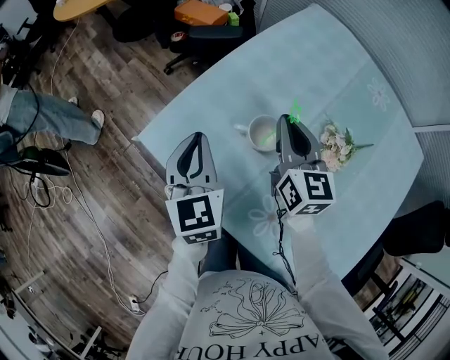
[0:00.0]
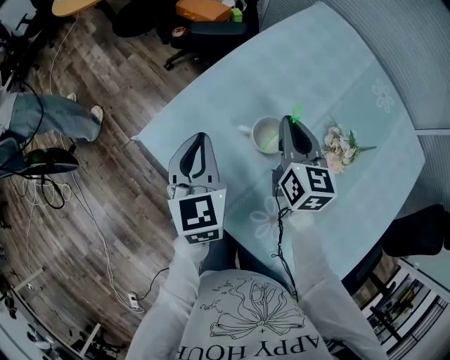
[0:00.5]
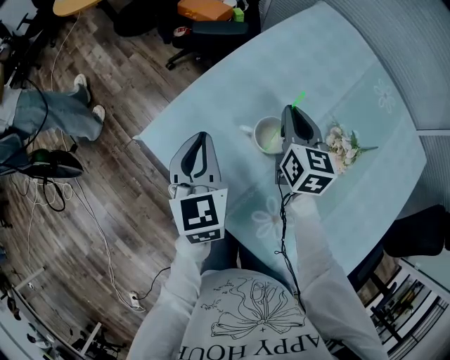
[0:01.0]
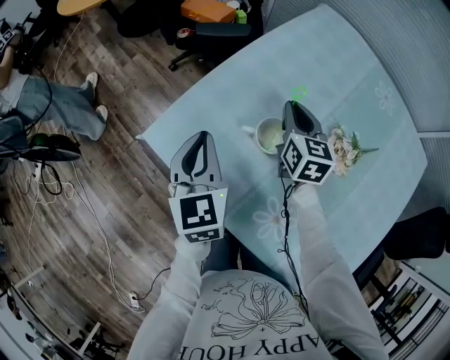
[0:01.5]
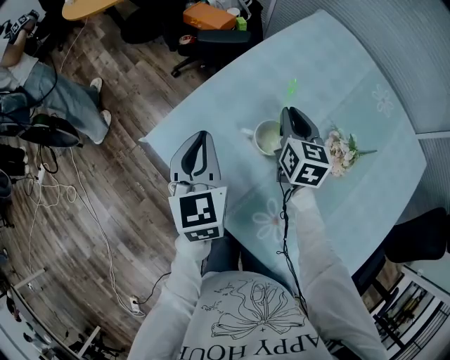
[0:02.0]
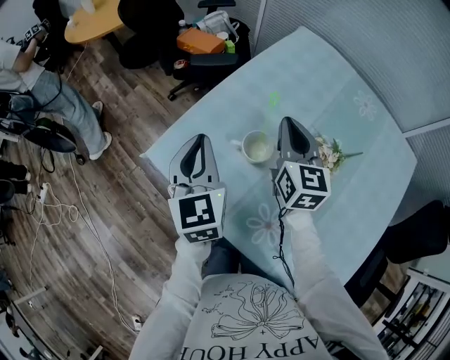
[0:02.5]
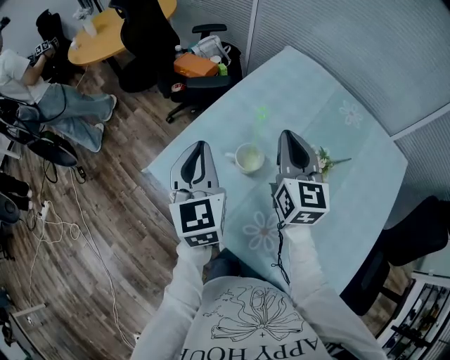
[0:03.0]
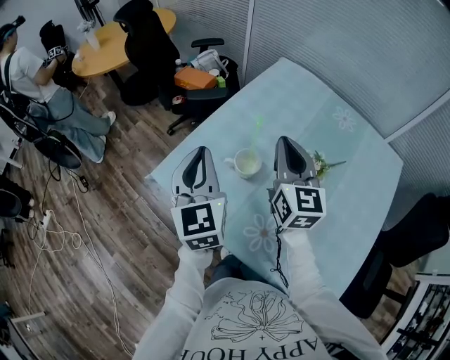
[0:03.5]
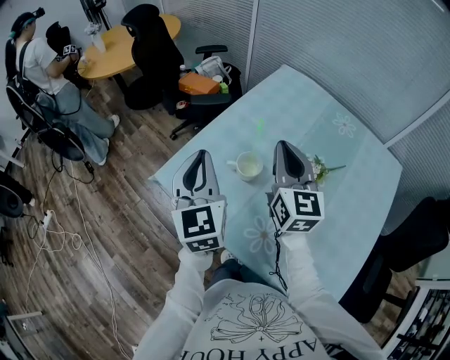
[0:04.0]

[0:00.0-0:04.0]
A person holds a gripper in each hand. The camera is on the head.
0:00.0 to 0:02.0: The right gripper heads downward, covering some 5 cm.
0:02.0 to 0:04.0: The left gripper goes roughly 15 cm upward and backward, while the right gripper travels upward and backward by roughly 25 cm, and rotates roughly 20 degrees.

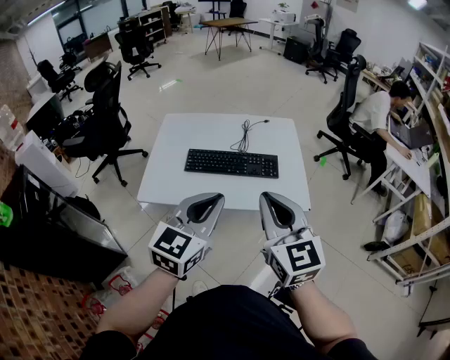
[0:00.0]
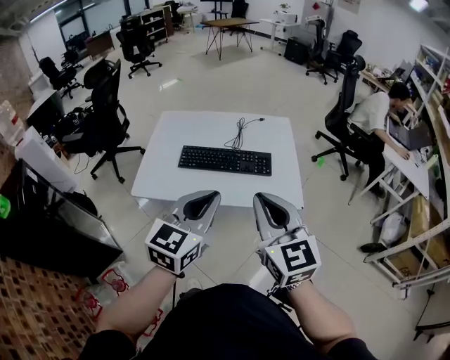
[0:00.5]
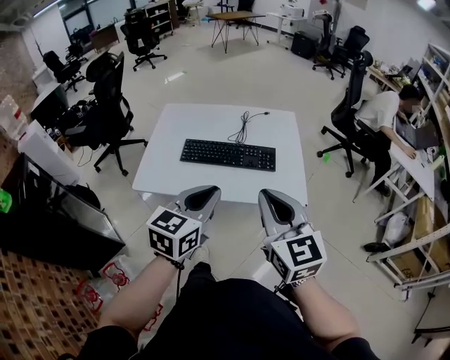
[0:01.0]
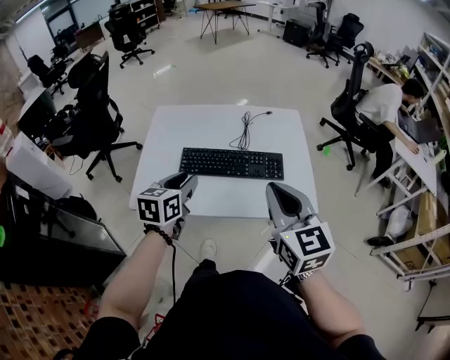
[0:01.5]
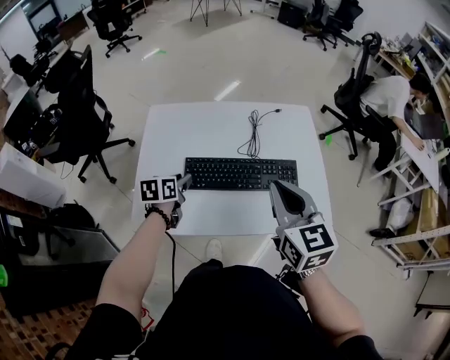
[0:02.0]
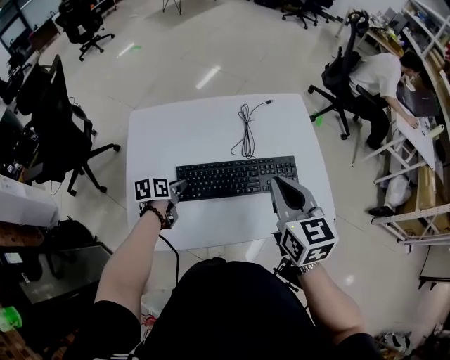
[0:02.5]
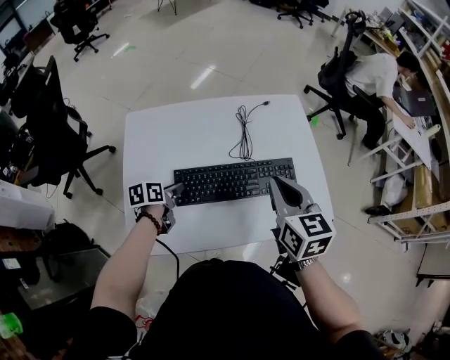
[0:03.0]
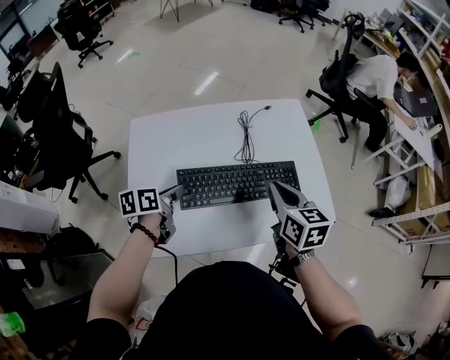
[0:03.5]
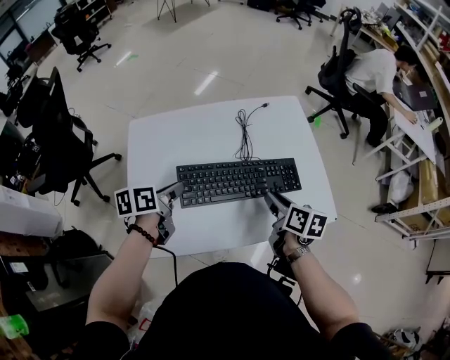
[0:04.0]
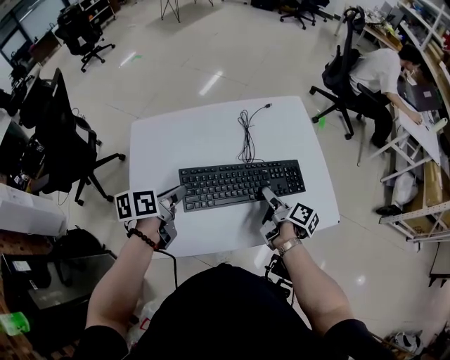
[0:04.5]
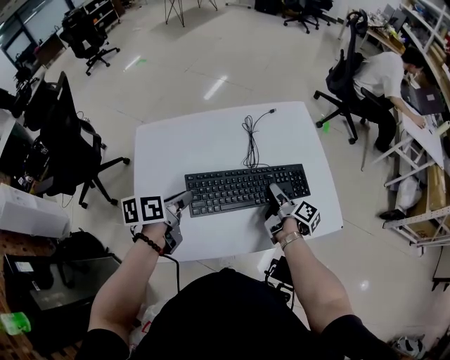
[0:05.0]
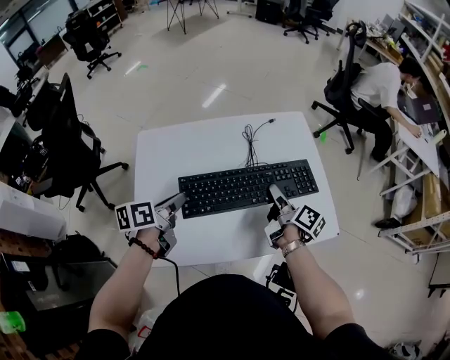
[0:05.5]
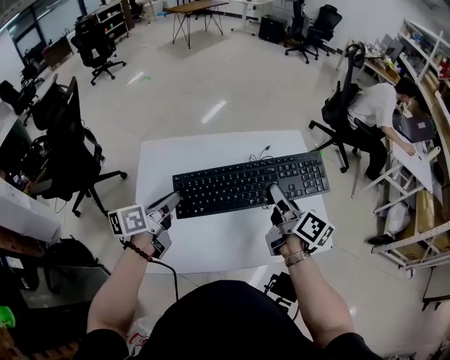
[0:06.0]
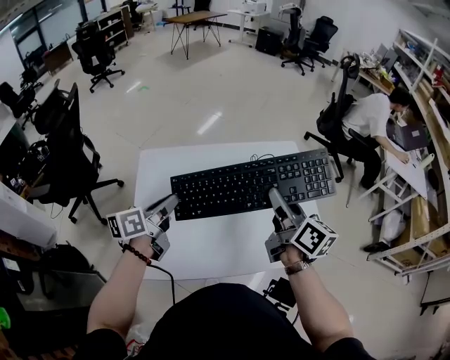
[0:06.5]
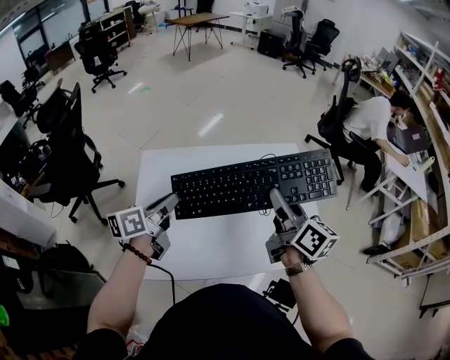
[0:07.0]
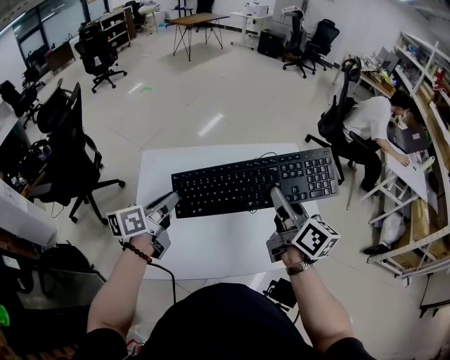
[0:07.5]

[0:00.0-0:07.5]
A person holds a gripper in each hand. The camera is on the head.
0:00.0 to 0:02.0: The right gripper goes some 20 cm forward; the left gripper goes about 40 cm forward, downward and to the left, points its fingers approximately 30 degrees further downward, and opens.
0:02.0 to 0:04.0: The right gripper goes some 20 cm downward, twists about 40 degrees clockwise, seen from behind, and opens up.
0:04.0 to 0:05.5: The right gripper moves forward, some 5 cm, goes downward and returns, some 5 cm each way, rotates roughly 30 degrees, and opens and closes again.
0:05.5 to 0:07.5: The right gripper goes about 20 cm upward, and rotates about 30 degrees, while the left gripper is displaced upward by approximately 10 cm.

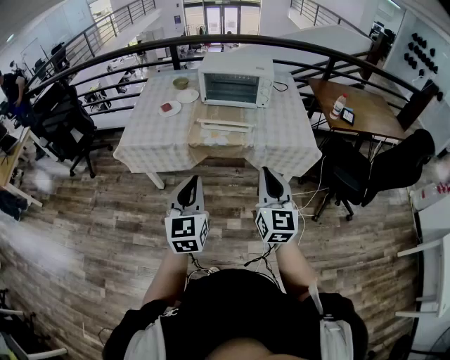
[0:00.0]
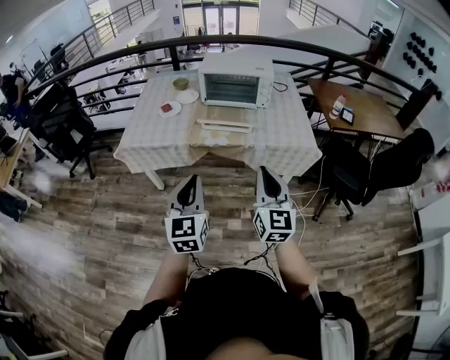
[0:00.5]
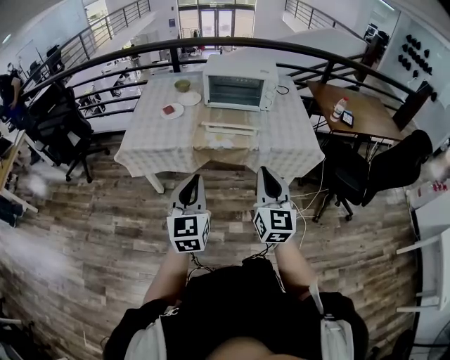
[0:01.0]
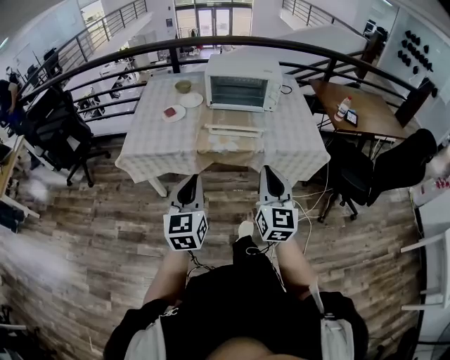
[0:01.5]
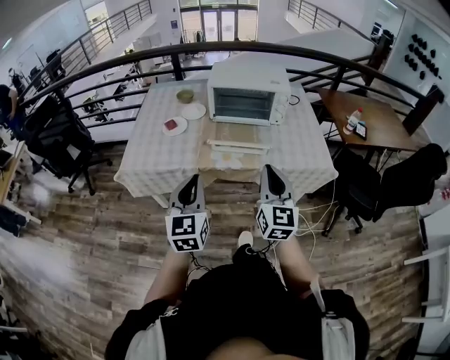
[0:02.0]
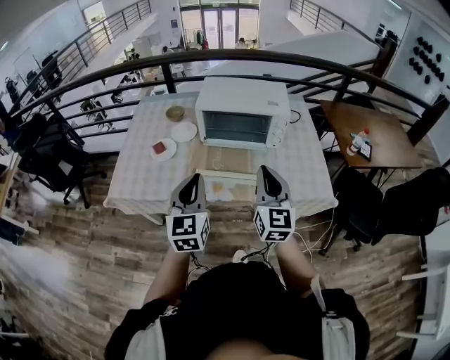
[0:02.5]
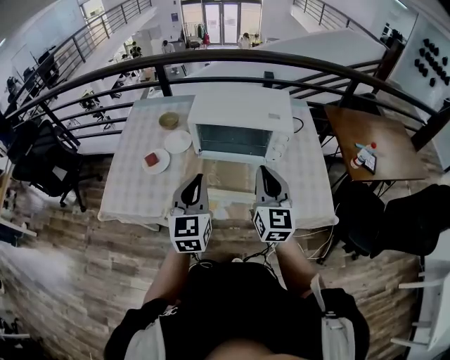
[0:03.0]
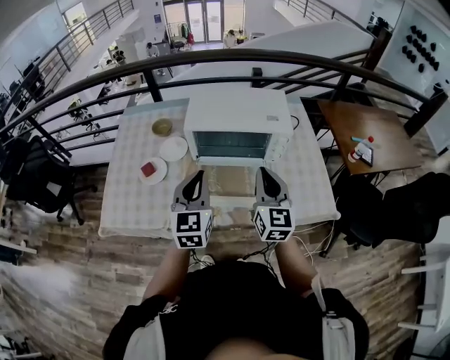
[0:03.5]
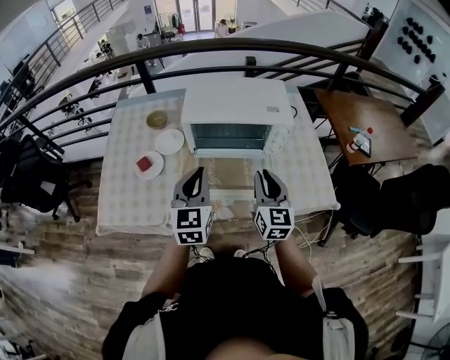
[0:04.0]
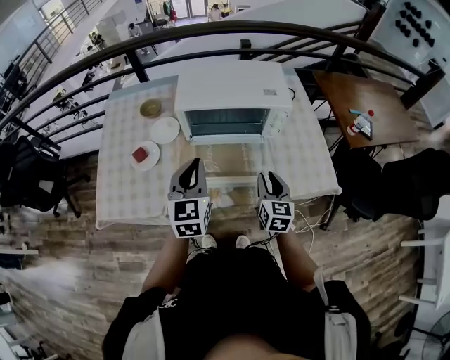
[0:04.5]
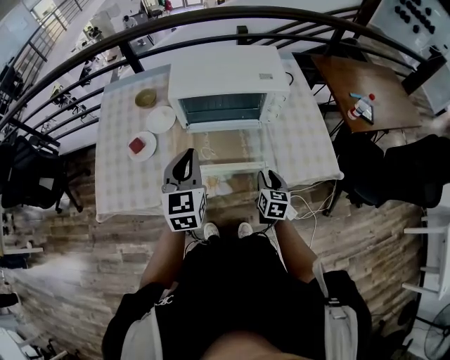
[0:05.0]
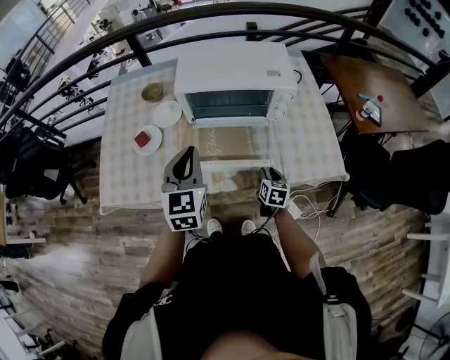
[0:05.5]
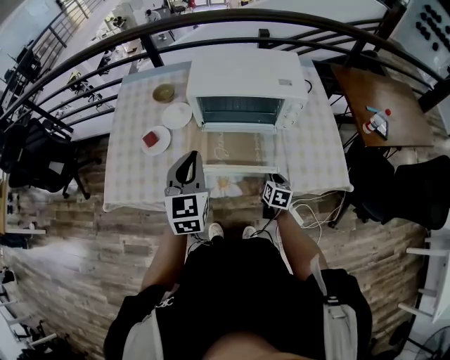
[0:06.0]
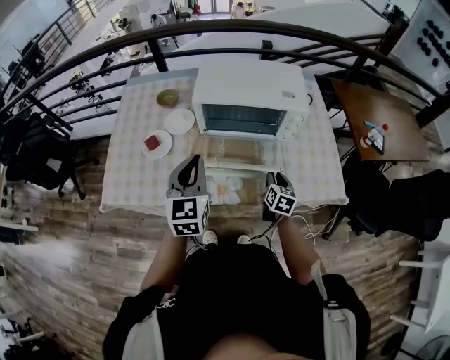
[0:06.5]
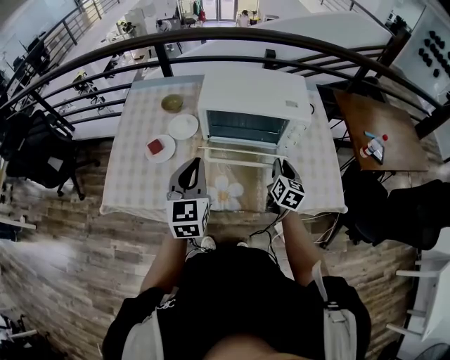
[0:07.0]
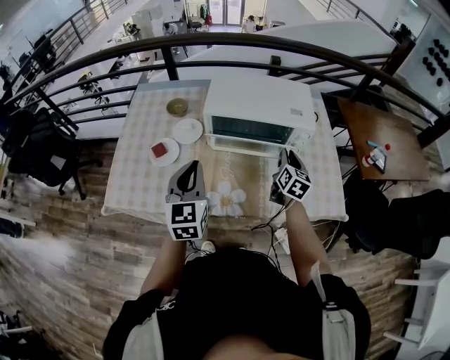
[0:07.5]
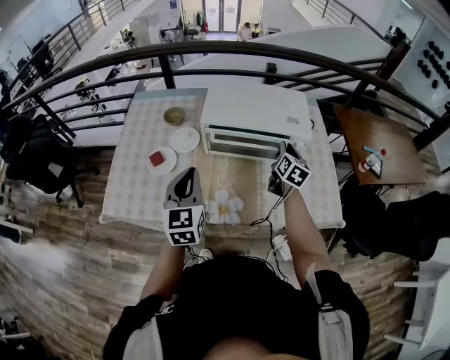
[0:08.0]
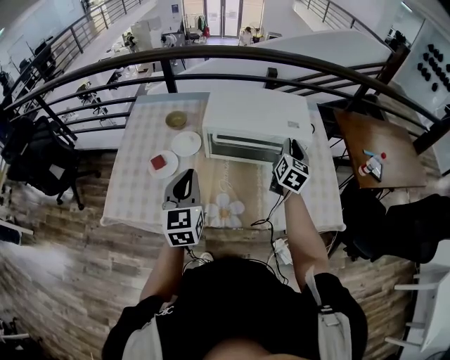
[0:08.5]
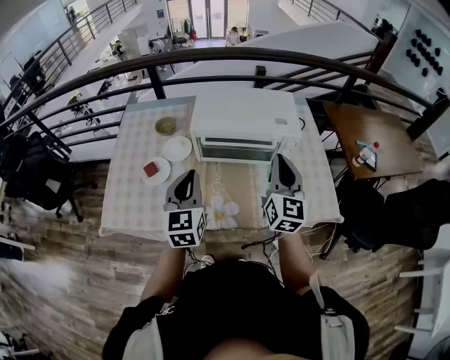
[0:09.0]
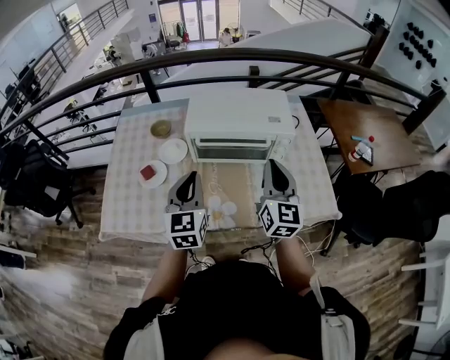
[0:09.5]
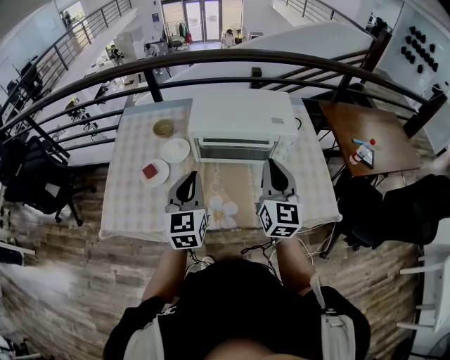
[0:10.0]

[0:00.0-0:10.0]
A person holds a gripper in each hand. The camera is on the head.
0:00.0 to 0:02.0: The right gripper heads forward, covering roughly 15 cm. Meanwhile the left gripper goes approximately 15 cm forward and to the left.
0:02.0 to 0:04.0: The two grippers go roughly 30 cm forward.
0:04.0 to 0:06.0: The right gripper is displaced downward by about 25 cm, and tips its fingers downward by approximately 30 degrees.
0:06.0 to 0:08.0: The right gripper is displaced upward and forward by some 25 cm, and changes its angle by about 20 degrees.
0:08.0 to 0:10.0: The right gripper is displaced backward and upward by about 20 cm, turns by some 30 degrees, and closes its fingers.

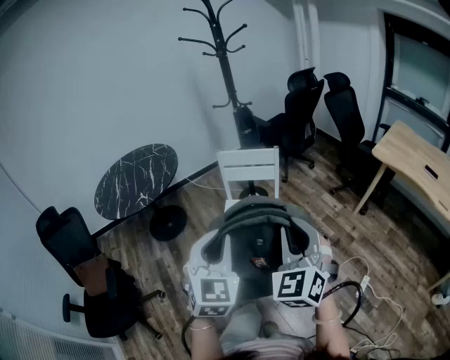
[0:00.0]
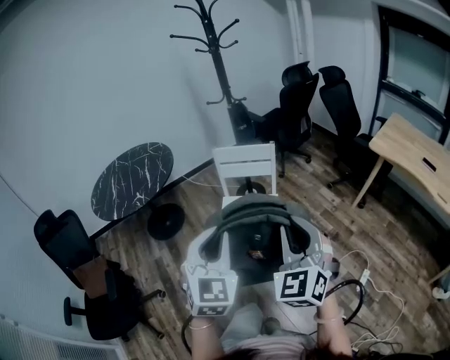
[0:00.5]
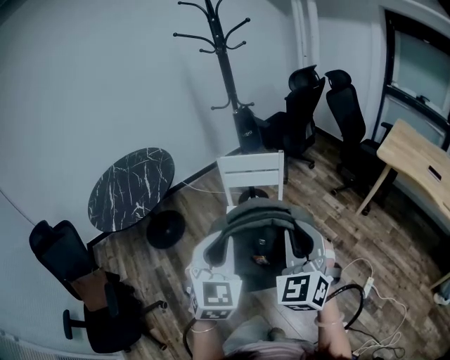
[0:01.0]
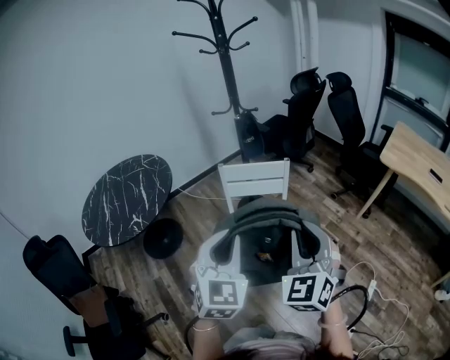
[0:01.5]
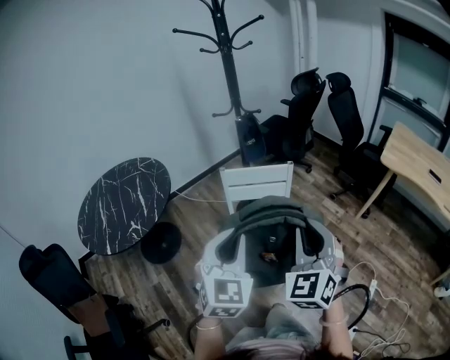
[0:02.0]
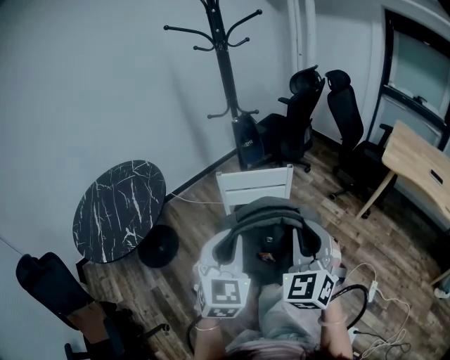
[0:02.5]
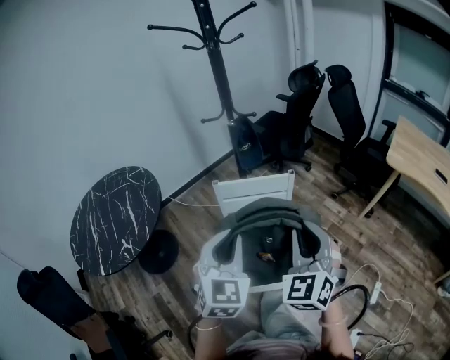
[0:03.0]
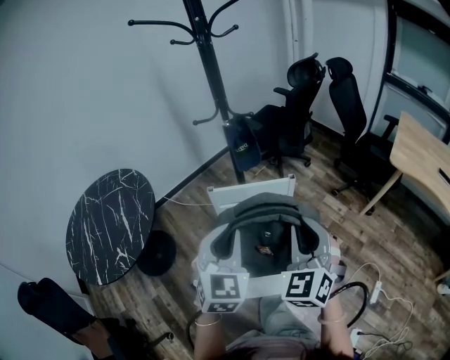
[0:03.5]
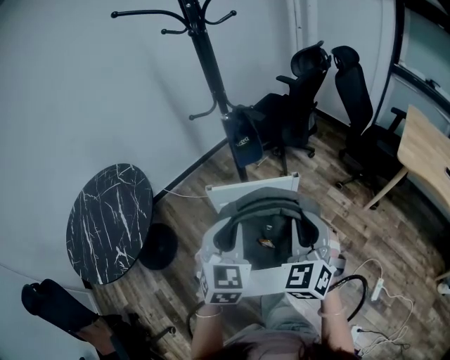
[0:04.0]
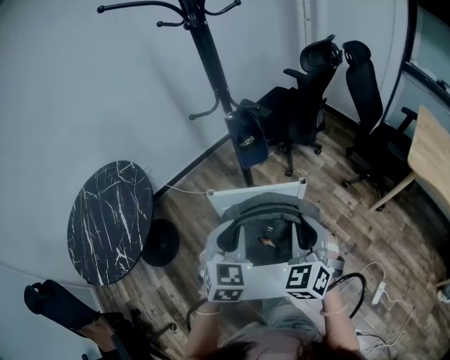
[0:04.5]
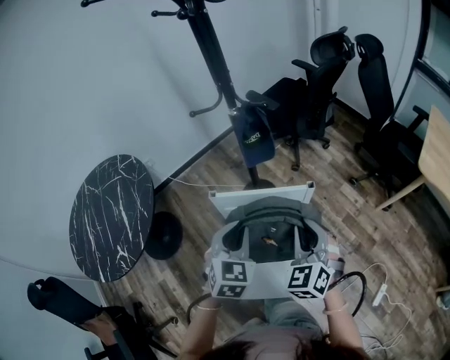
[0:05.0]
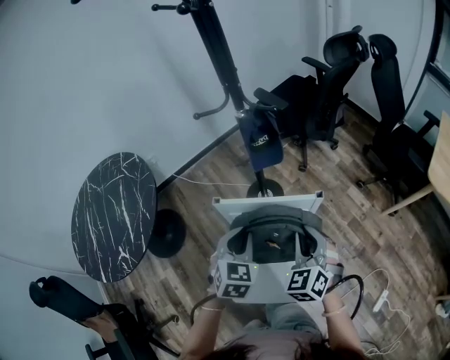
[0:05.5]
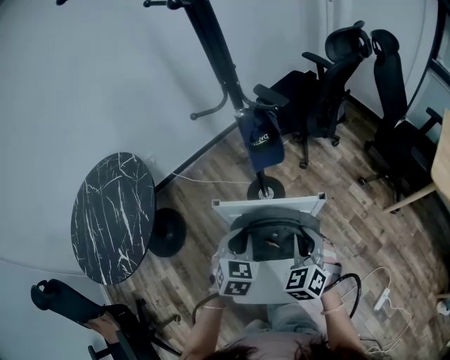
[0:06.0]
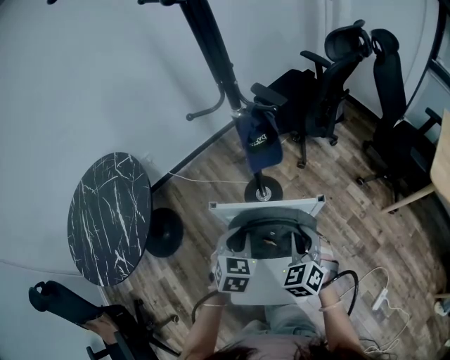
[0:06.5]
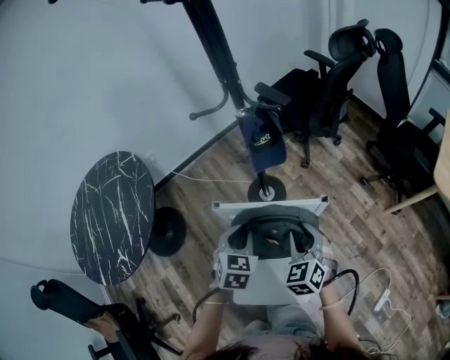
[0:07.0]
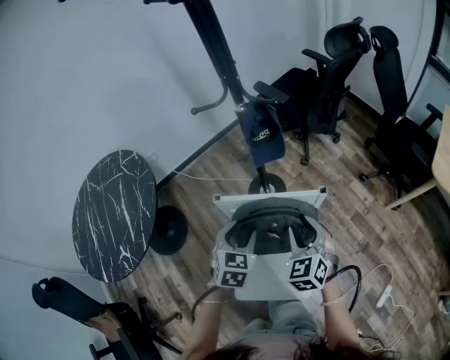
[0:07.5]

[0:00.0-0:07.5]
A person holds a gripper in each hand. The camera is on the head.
0:00.0 to 0:02.0: The grippers both shift forward and to the left by about 20 cm.
0:02.0 to 0:04.0: Both grippers move forward, approximately 25 cm.
0:04.0 to 0:05.5: The grippers both shift downward and forward by some 20 cm.
0:05.5 to 0:07.5: The left gripper opens. Meanwhile the right gripper opens up.
